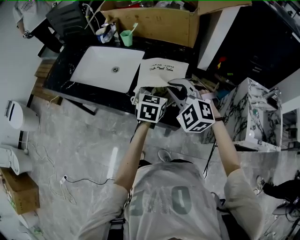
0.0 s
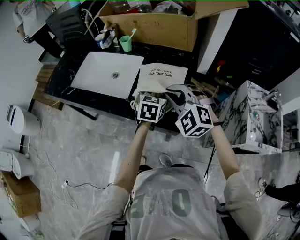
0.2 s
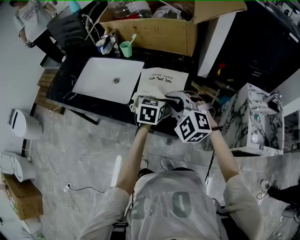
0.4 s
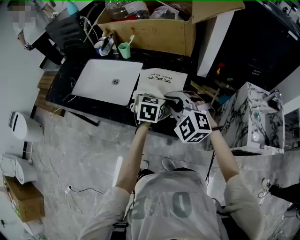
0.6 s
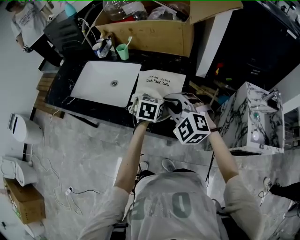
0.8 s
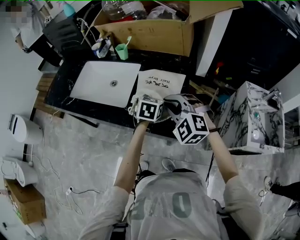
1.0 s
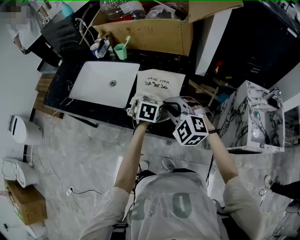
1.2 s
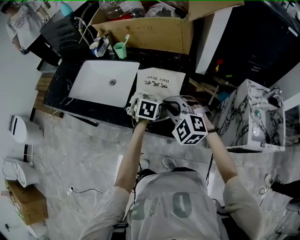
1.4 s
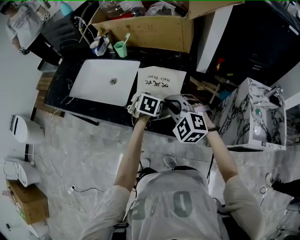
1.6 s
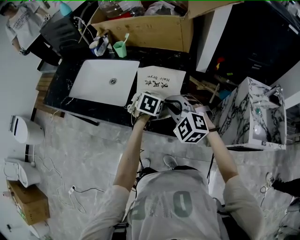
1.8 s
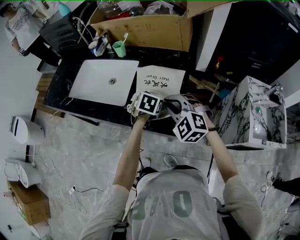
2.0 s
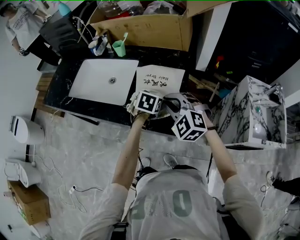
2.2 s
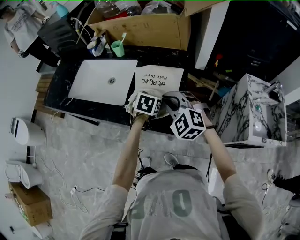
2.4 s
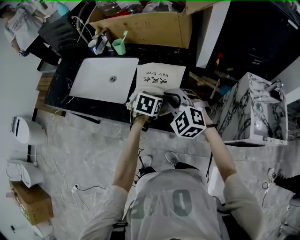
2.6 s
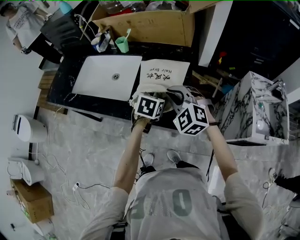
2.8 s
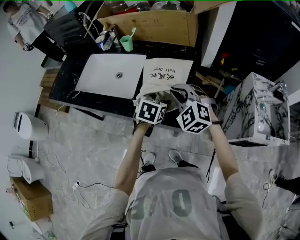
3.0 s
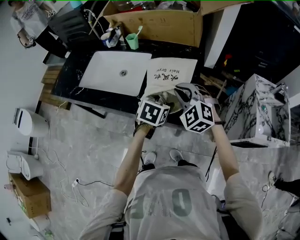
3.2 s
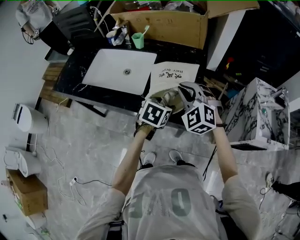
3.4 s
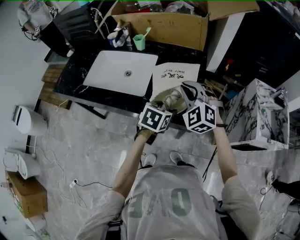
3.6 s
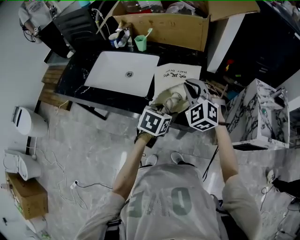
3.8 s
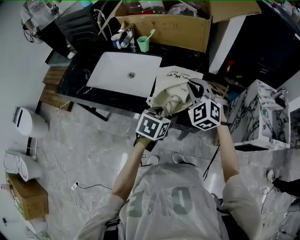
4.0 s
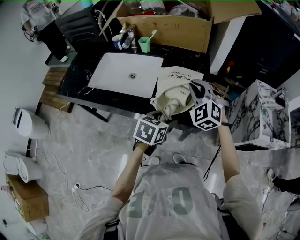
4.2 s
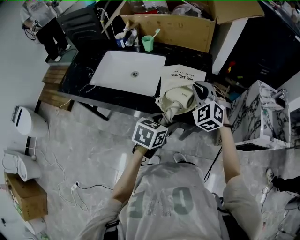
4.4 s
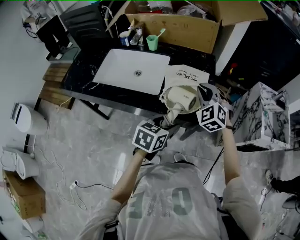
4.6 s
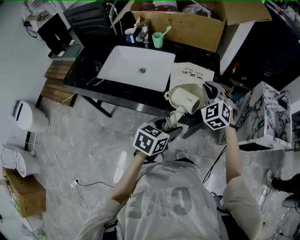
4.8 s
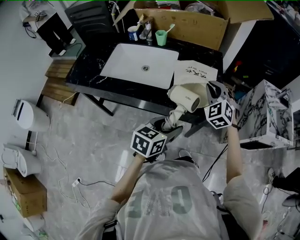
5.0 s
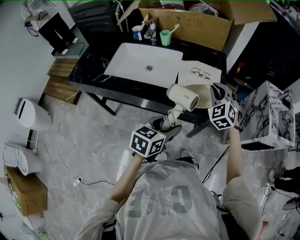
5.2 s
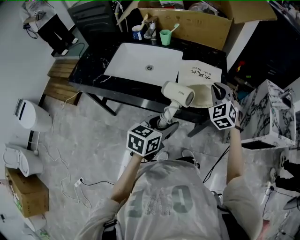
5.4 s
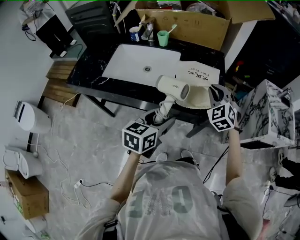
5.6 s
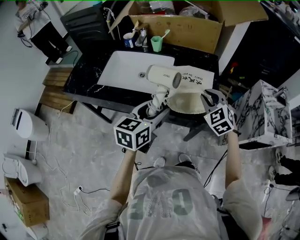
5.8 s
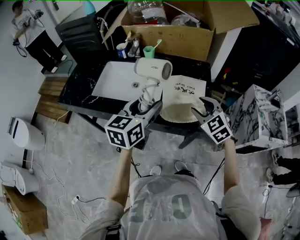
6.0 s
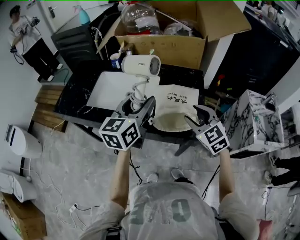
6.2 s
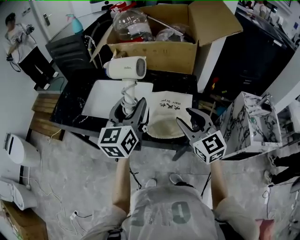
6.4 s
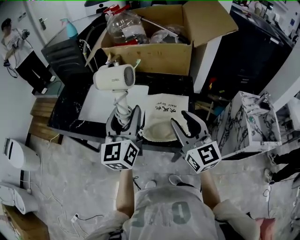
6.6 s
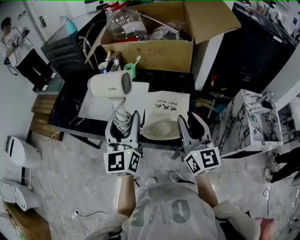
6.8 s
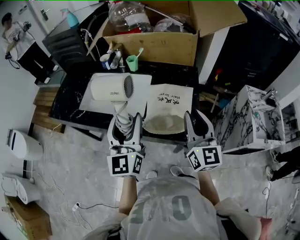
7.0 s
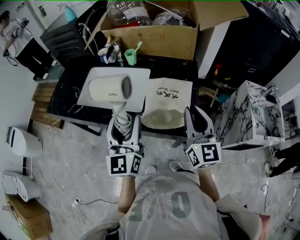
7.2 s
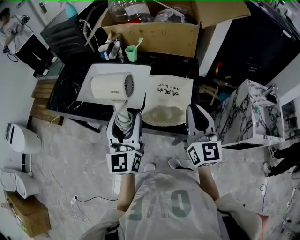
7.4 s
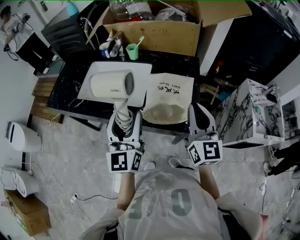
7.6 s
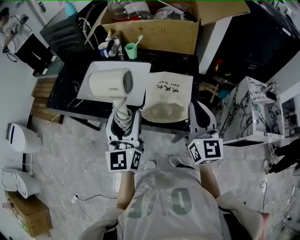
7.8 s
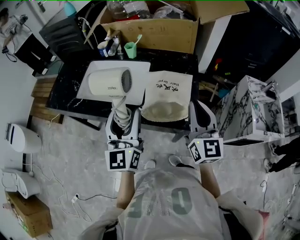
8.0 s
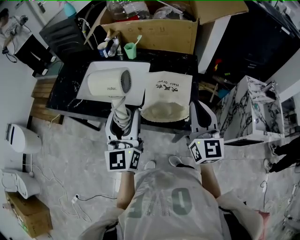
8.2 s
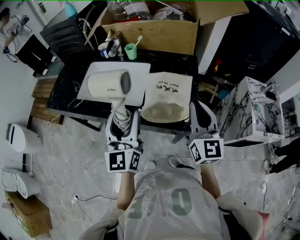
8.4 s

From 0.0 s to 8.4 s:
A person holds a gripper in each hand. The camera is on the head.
From 0.0 s to 1.4 s: The left gripper goes roughly 5 cm downward.
From 1.4 s to 2.8 s: The grippers make only small movements.
From 2.8 s to 4.2 s: The left gripper is displaced backward and to the left by approximately 15 cm.
From 4.2 s to 5.6 s: The left gripper is displaced to the left and backward by roughly 10 cm.
From 5.6 s to 7.0 s: The right gripper is displaced upward by approximately 10 cm, and rolls clockwise, seen from behind, by about 50 degrees; the left gripper moves upward and forward, approximately 15 cm, and angles its fingers upward, by roughly 30 degrees.
From 7.0 s to 8.4 s: The grippers stay close to where they were, moving slightly.

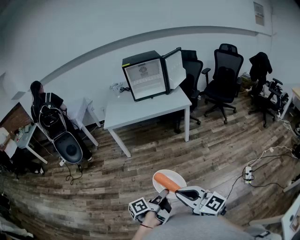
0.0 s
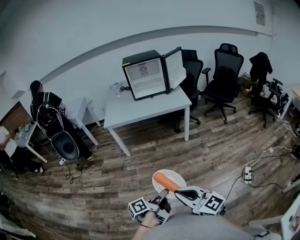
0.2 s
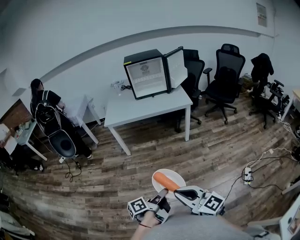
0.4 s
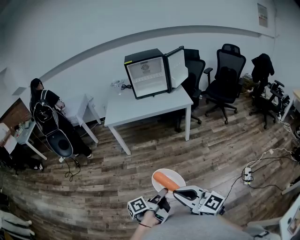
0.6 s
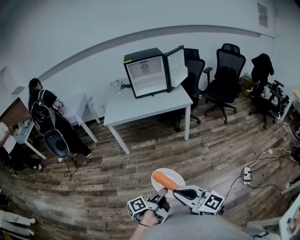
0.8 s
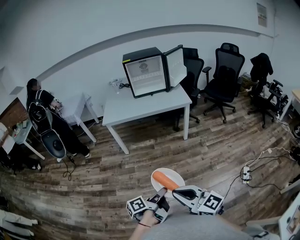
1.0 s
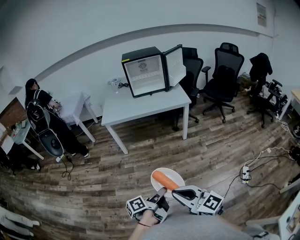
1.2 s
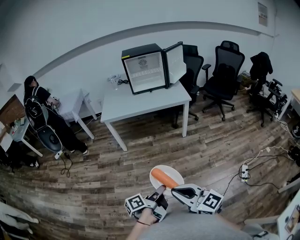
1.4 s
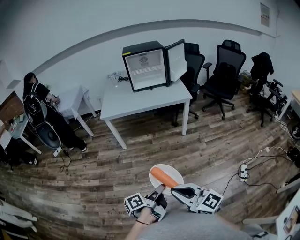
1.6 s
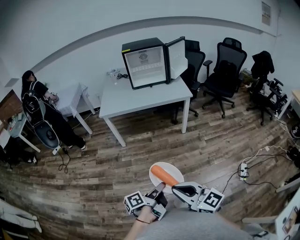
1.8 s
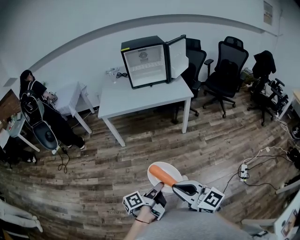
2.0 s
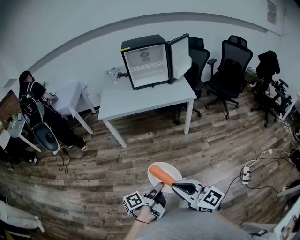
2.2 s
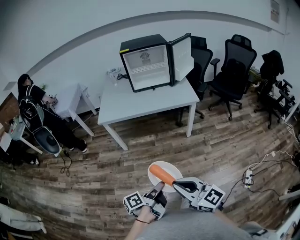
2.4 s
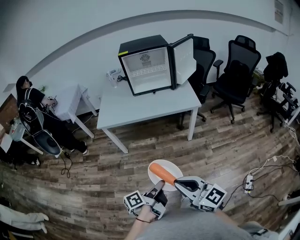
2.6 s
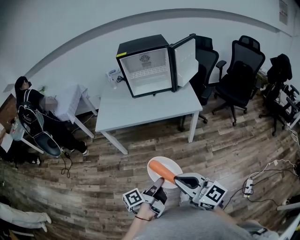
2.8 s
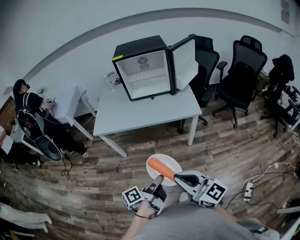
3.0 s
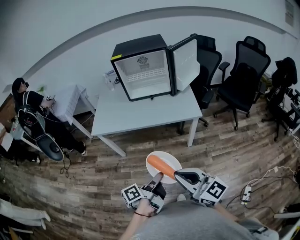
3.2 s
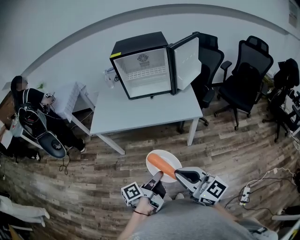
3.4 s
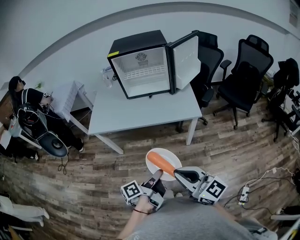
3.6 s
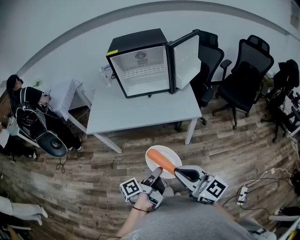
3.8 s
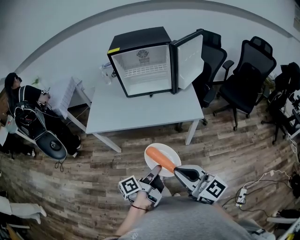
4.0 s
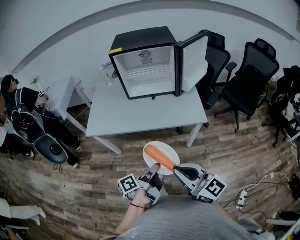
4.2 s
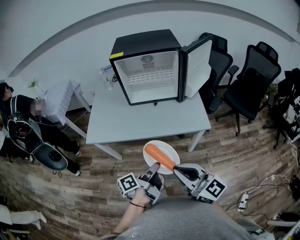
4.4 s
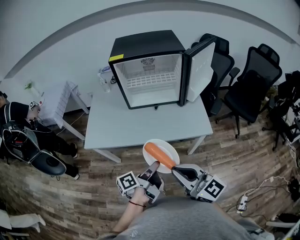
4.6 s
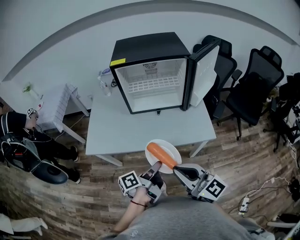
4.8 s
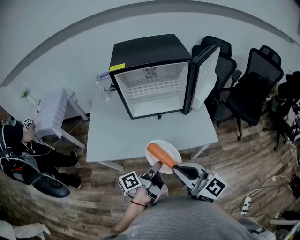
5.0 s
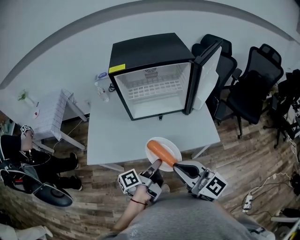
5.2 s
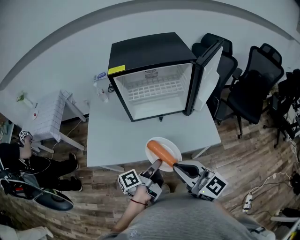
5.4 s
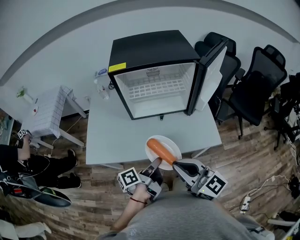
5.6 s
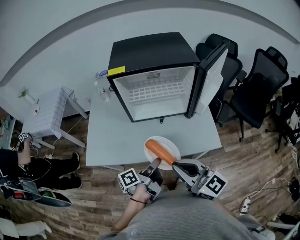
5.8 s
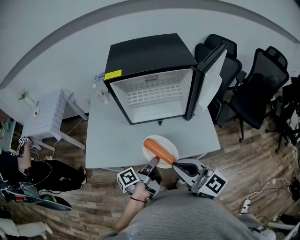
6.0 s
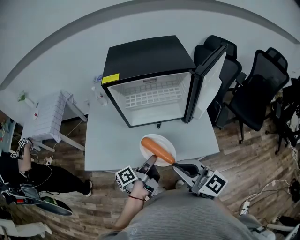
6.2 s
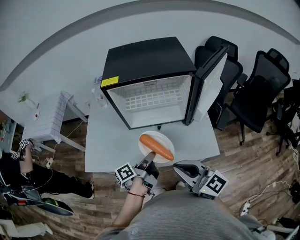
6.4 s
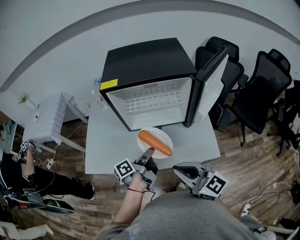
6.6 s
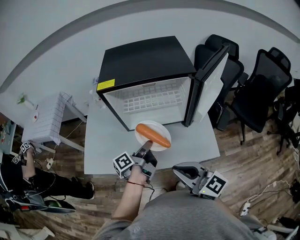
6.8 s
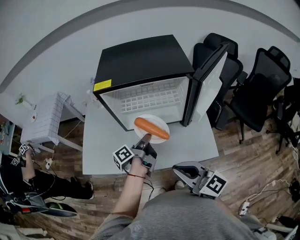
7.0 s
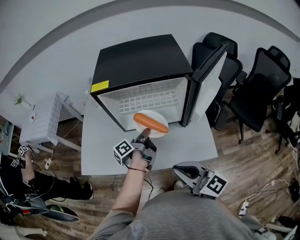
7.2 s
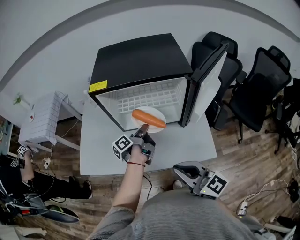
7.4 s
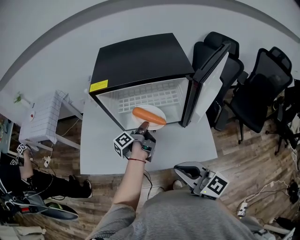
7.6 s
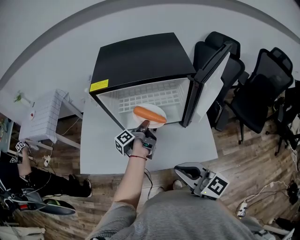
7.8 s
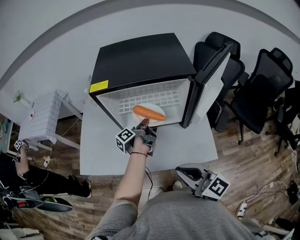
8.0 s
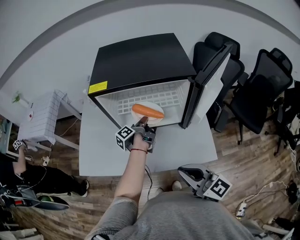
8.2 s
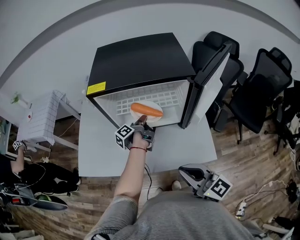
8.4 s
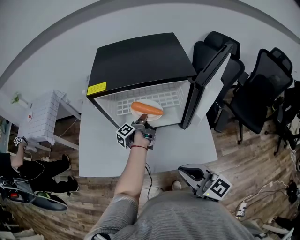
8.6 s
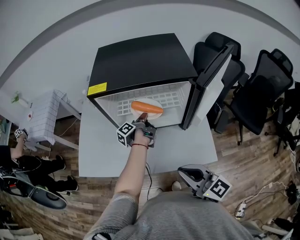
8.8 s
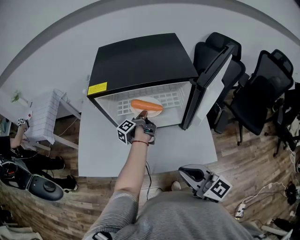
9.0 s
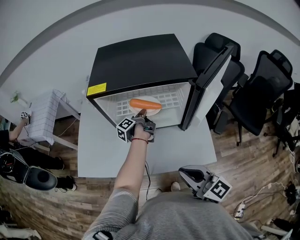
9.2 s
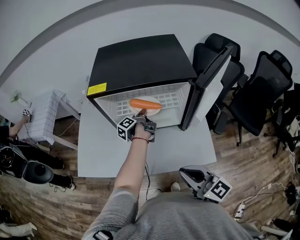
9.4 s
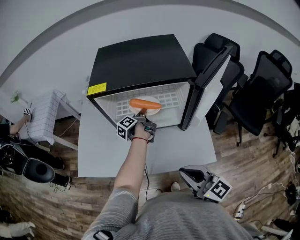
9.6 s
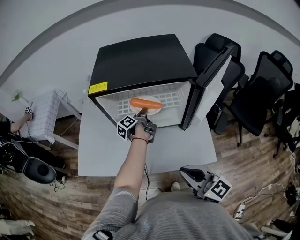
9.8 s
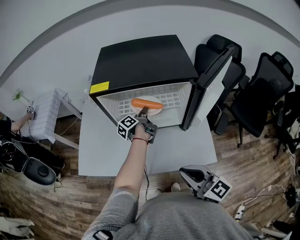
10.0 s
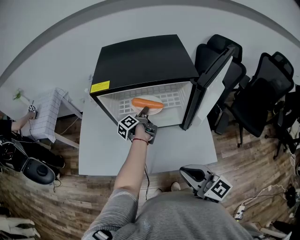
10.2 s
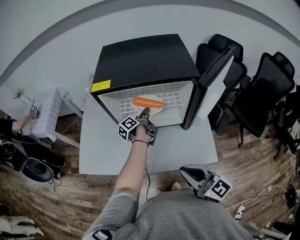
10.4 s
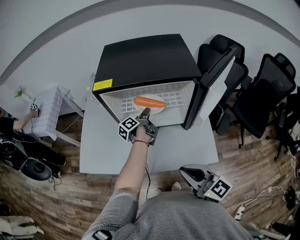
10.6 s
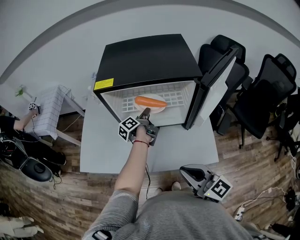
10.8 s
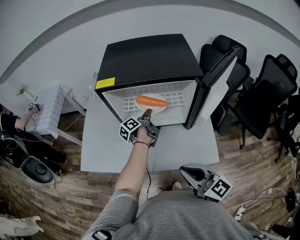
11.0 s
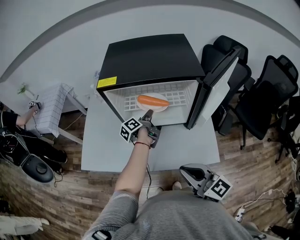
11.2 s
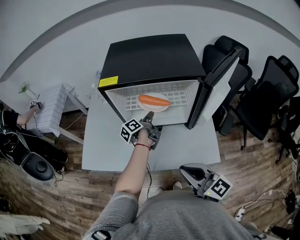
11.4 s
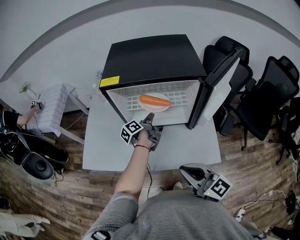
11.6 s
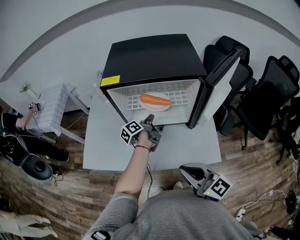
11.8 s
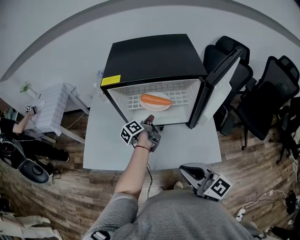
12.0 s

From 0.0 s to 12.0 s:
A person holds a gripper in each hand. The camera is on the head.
From 1.6 s to 3.0 s: The right gripper changes place by some 40 cm.
From 3.0 s to 4.4 s: The right gripper changes place by roughly 20 cm.
From 4.4 s to 6.0 s: The right gripper ends up roughly 20 cm from where it was.
From 6.0 s to 7.6 s: The right gripper moves some 10 cm.

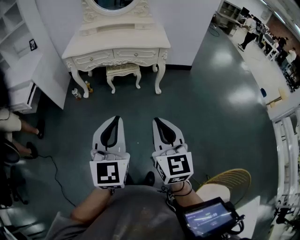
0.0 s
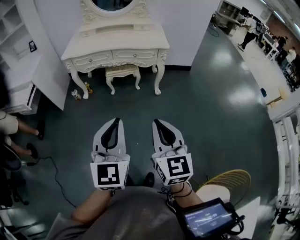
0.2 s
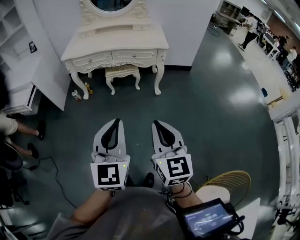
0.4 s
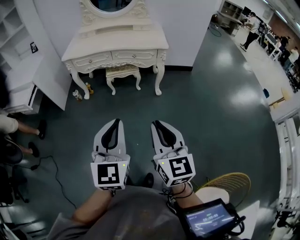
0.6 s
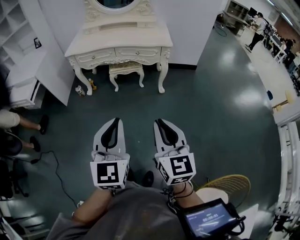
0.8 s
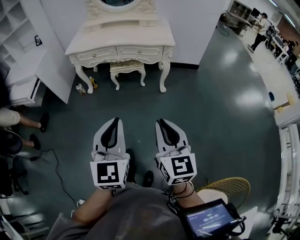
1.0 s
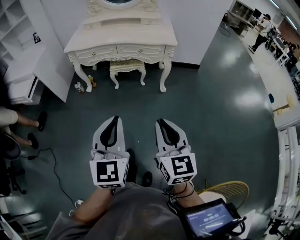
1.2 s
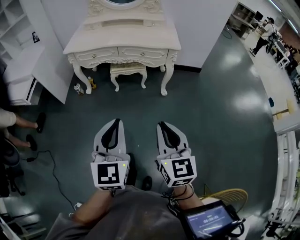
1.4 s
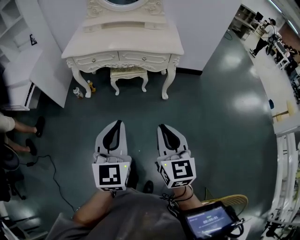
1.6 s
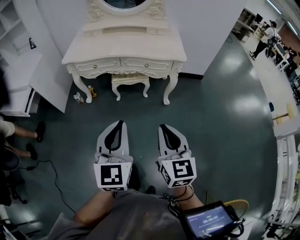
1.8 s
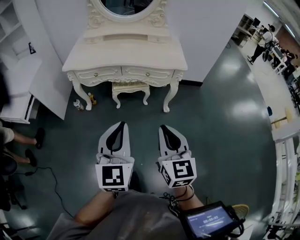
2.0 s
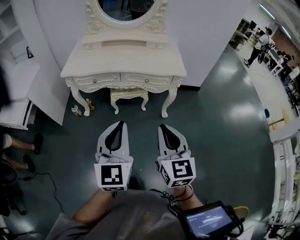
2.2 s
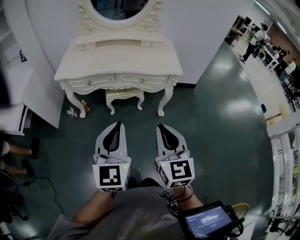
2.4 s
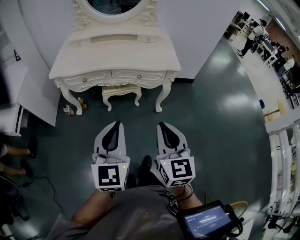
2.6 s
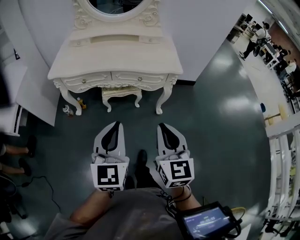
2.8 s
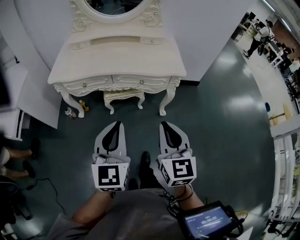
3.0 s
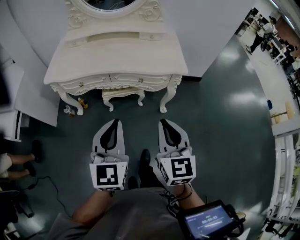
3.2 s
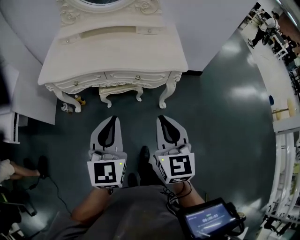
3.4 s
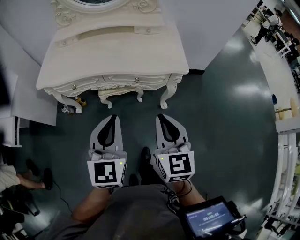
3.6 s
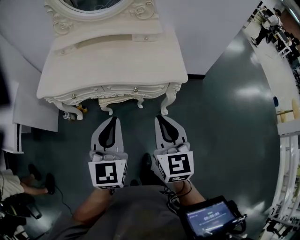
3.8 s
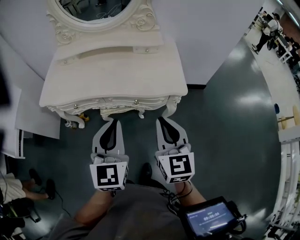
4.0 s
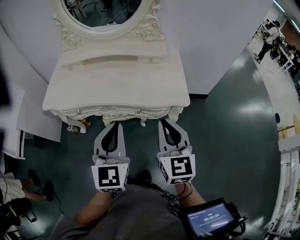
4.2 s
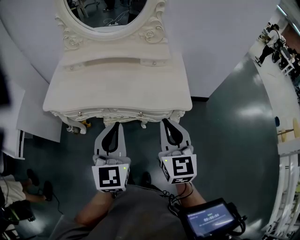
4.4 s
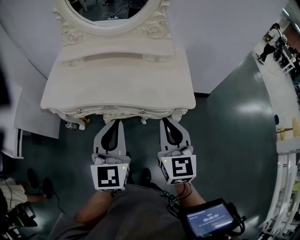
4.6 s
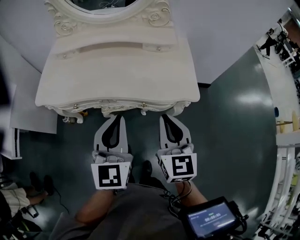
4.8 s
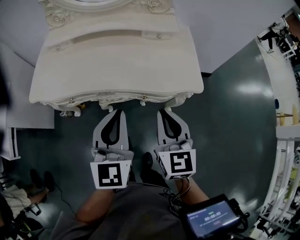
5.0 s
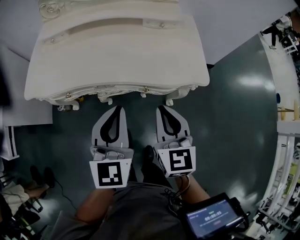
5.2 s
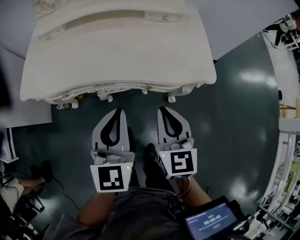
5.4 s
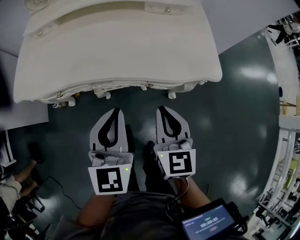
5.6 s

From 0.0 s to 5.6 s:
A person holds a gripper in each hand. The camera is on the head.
From 0.0 s to 1.4 s: The grippers both shift forward by roughly 10 cm.
From 1.4 s to 2.8 s: Both grippers travel together forward, some 25 cm.
From 2.8 s to 4.2 s: The grippers both shift forward by some 25 cm.
From 4.2 s to 5.6 s: The left gripper travels downward and forward by some 15 cm. The right gripper heads downward, covering roughly 15 cm.
